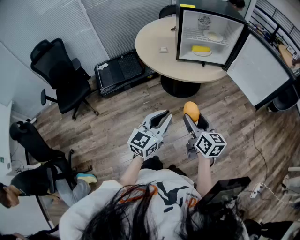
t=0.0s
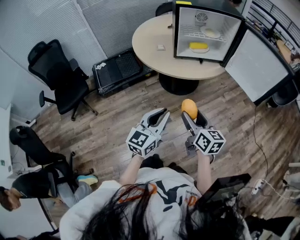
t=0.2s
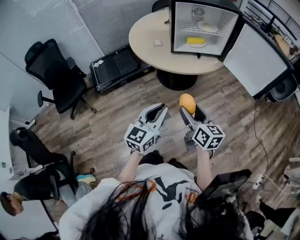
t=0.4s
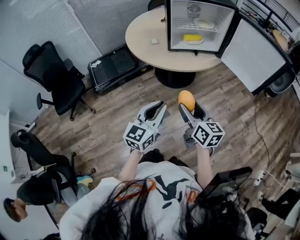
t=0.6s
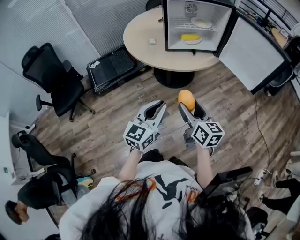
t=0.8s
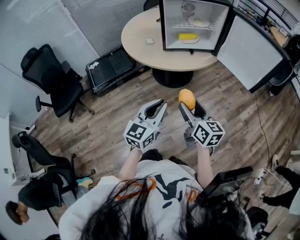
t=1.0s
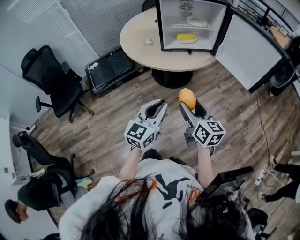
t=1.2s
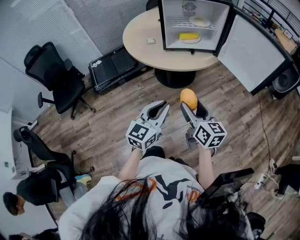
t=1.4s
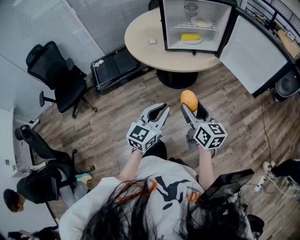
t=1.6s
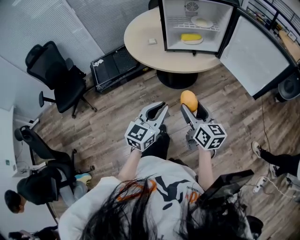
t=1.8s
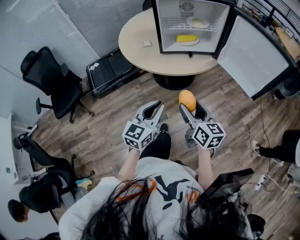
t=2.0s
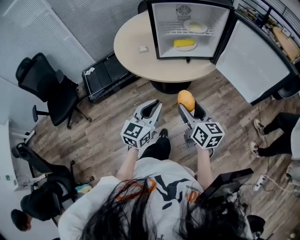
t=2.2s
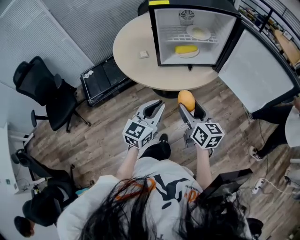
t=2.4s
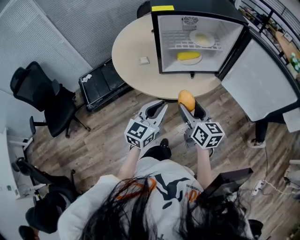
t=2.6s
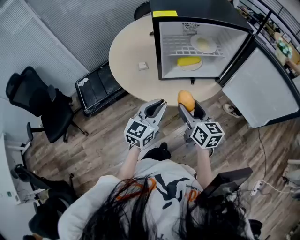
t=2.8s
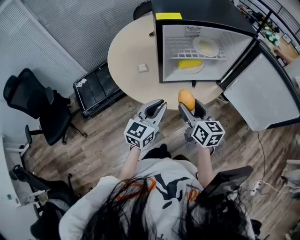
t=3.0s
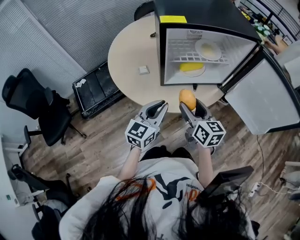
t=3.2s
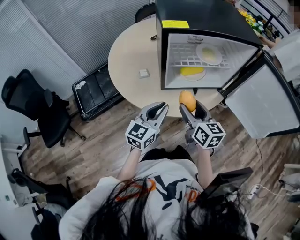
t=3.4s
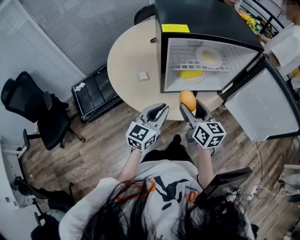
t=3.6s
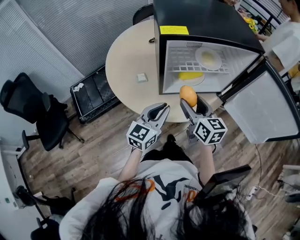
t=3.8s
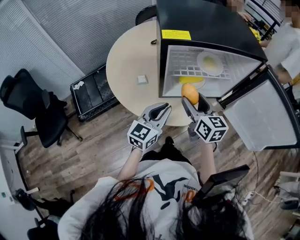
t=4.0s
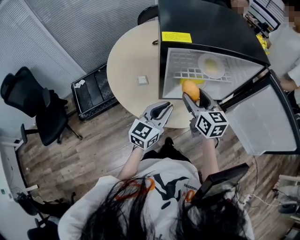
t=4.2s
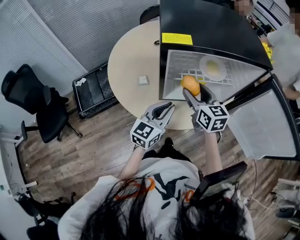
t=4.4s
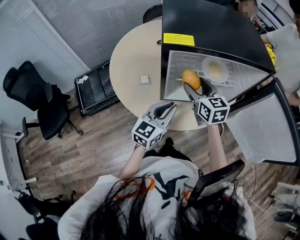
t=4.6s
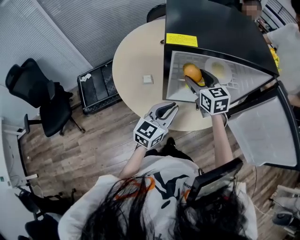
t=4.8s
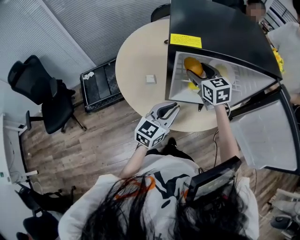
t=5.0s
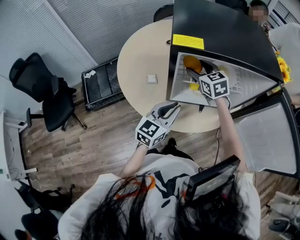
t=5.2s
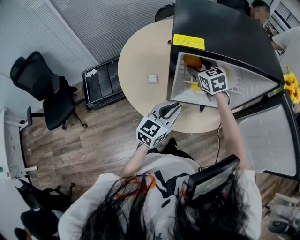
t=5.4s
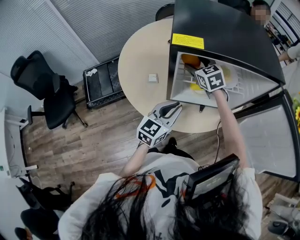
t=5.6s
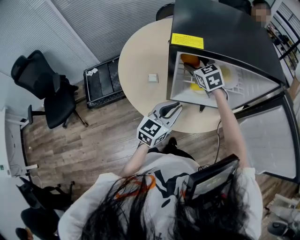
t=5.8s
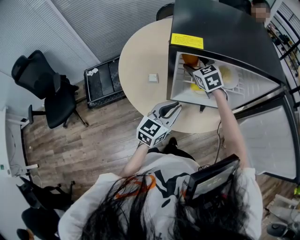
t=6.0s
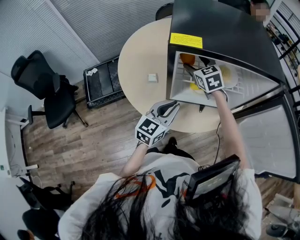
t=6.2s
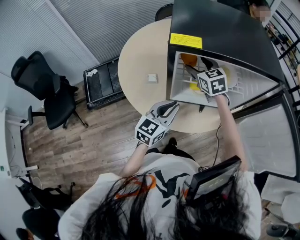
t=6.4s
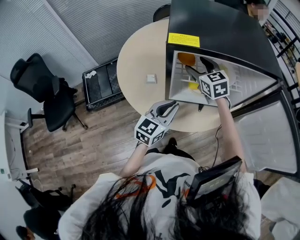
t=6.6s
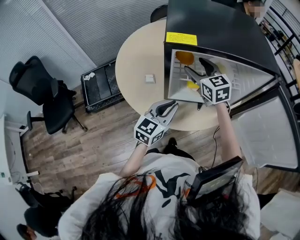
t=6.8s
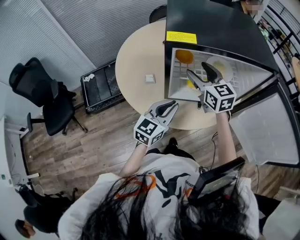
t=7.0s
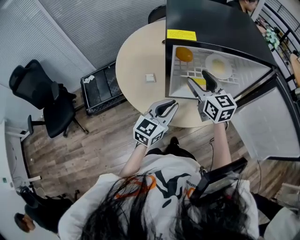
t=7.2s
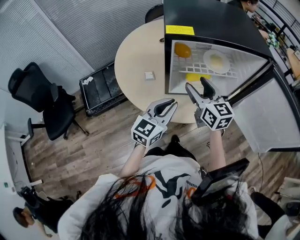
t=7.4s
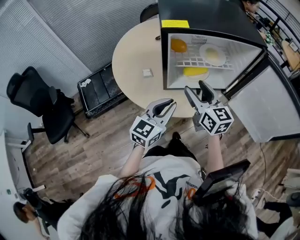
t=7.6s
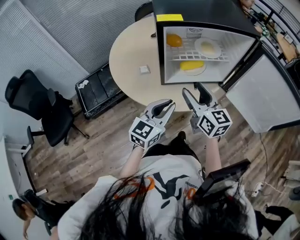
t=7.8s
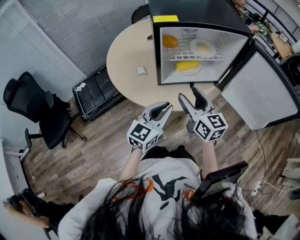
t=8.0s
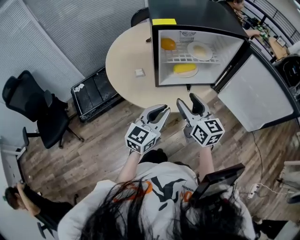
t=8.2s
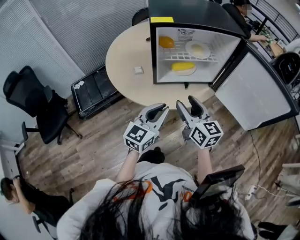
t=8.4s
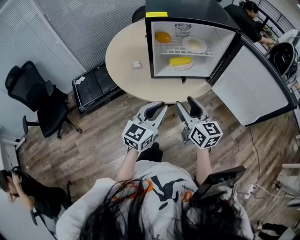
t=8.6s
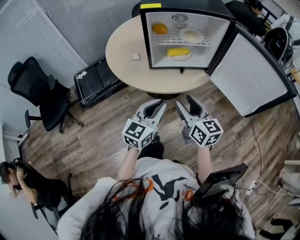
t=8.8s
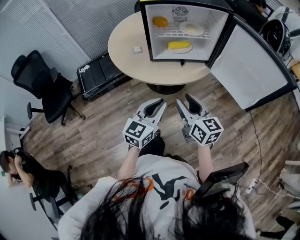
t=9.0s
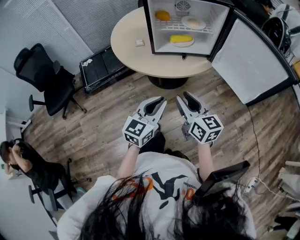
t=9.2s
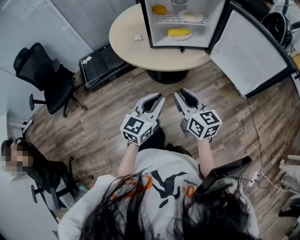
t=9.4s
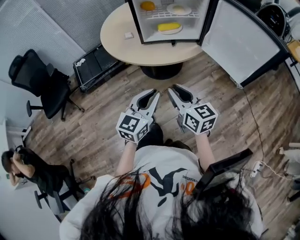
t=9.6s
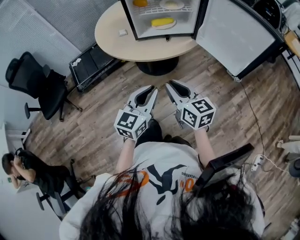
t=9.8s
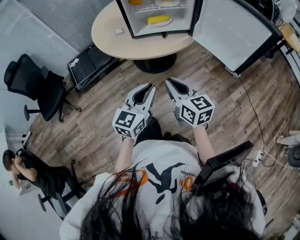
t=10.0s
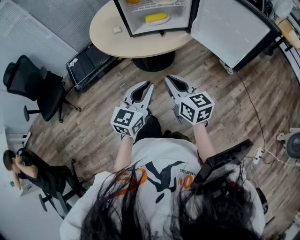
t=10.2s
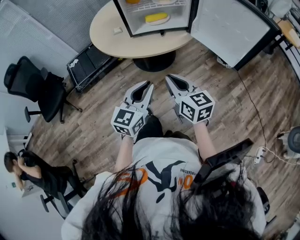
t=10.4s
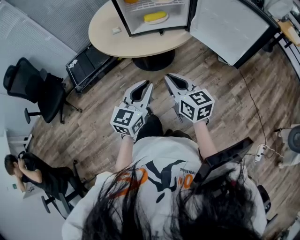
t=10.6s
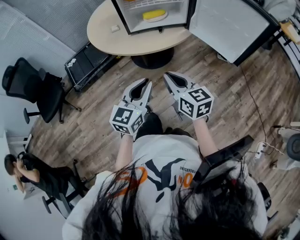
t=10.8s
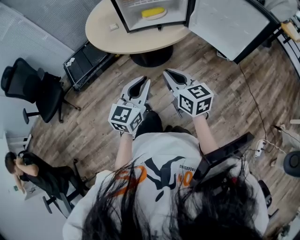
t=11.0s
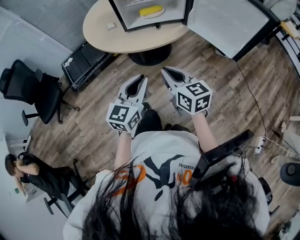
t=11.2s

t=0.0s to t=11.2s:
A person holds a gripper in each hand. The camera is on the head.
t=0.0s to t=1.6s: Both grippers travel together to the right, some 5 cm.
t=1.6s to t=3.2s: The two grippers go roughly 30 cm forward.
t=3.2s to t=4.8s: The left gripper travels forward by some 10 cm. The right gripper moves forward, approximately 20 cm, and changes its angle by approximately 30 degrees.
t=4.8s to t=6.4s: The right gripper shifts about 5 cm forward.
t=6.4s to t=8.0s: The right gripper heads backward, covering about 30 cm, and changes its angle by some 30 degrees; the left gripper goes about 15 cm backward.
t=8.0s to t=9.6s: Both grippers travel together backward, roughly 25 cm. The right gripper closes up.
t=9.6s to t=11.2s: The grippers move only a little.

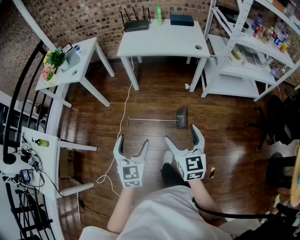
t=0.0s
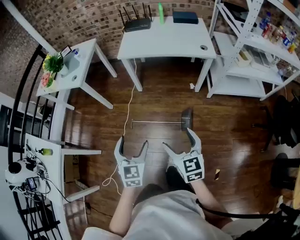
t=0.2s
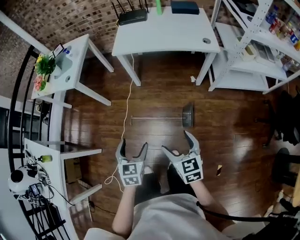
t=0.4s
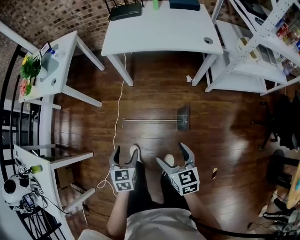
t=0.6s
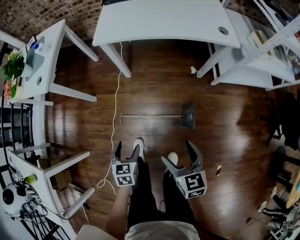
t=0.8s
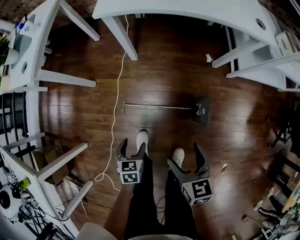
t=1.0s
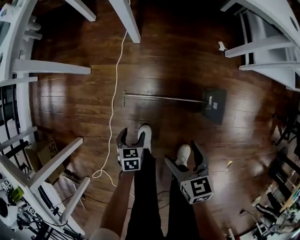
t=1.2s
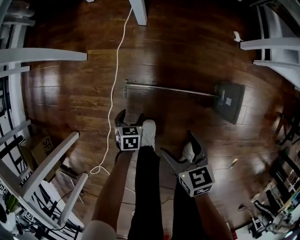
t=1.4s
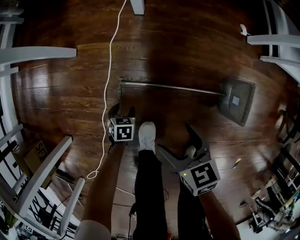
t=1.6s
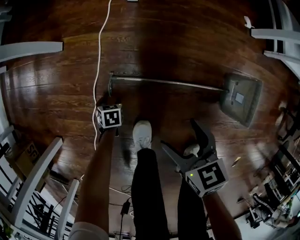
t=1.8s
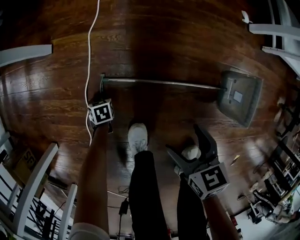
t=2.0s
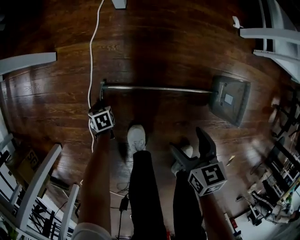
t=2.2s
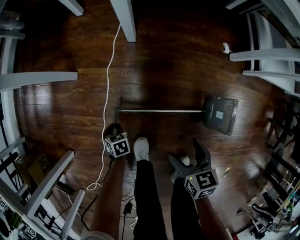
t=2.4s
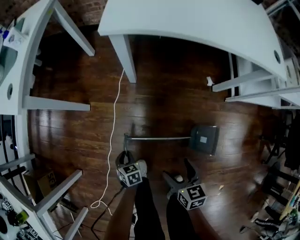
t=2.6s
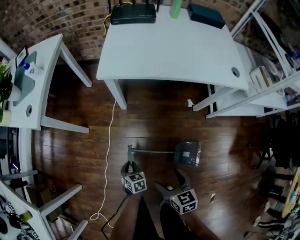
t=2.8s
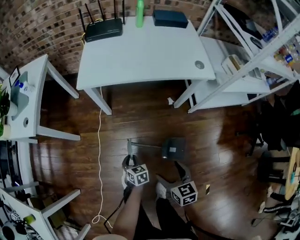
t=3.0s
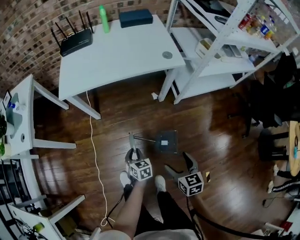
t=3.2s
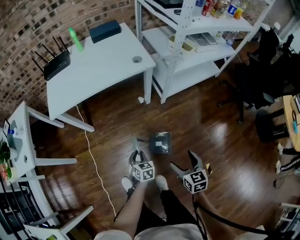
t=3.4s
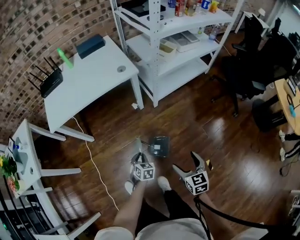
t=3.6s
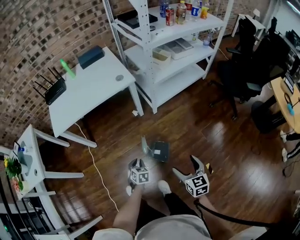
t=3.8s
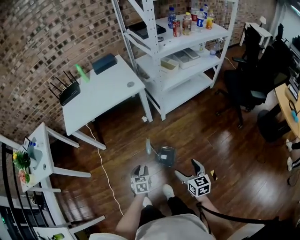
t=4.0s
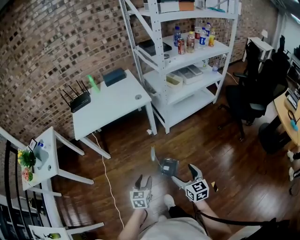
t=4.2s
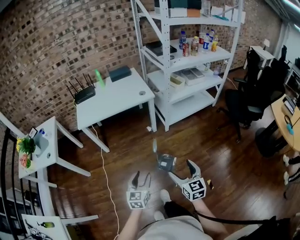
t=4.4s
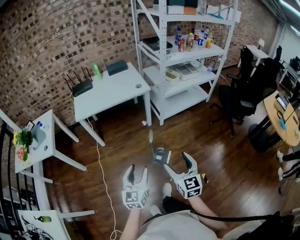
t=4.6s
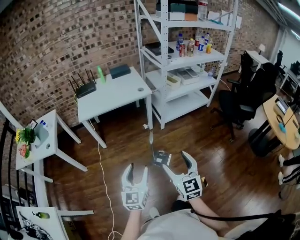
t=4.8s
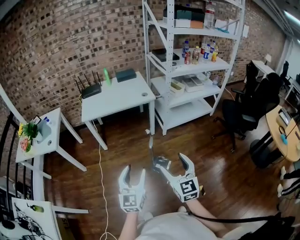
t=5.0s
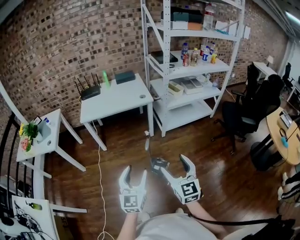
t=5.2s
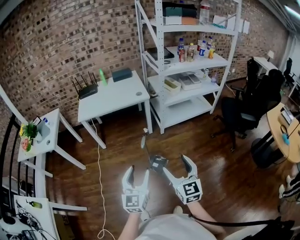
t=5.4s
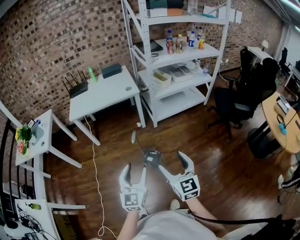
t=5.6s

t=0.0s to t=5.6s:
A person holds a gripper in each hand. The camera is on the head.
t=0.0s to t=1.4s: The right gripper heads downward and forward, covering about 60 cm, and swivels about 40 degrees; the left gripper goes roughly 70 cm downward, and points its fingers approximately 50 degrees further downward.
t=1.4s to t=2.8s: Both grippers move upward, about 25 cm. The left gripper closes its fingers.
t=2.8s to t=4.2s: The right gripper ends up about 50 cm from where it was, and changes its angle by approximately 40 degrees; the left gripper changes place by some 50 cm, and turns by approximately 50 degrees.
t=4.2s to t=5.6s: The right gripper travels upward and backward by roughly 20 cm, and swivels some 20 degrees, while the left gripper shifts about 30 cm upward, backward and to the right, and swivels about 30 degrees.

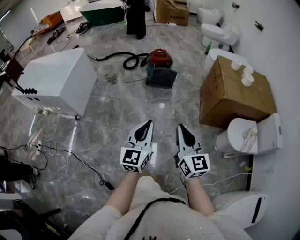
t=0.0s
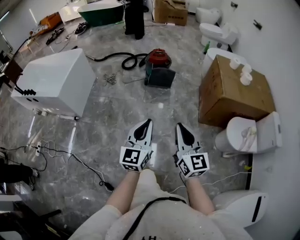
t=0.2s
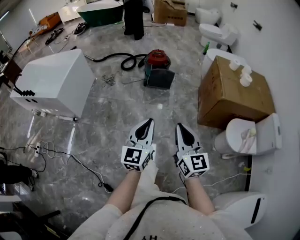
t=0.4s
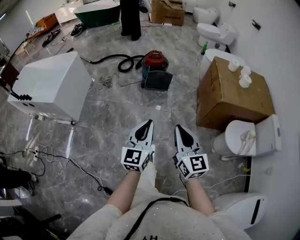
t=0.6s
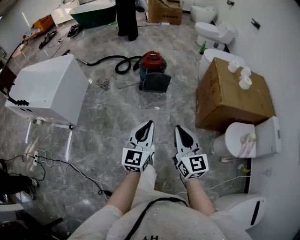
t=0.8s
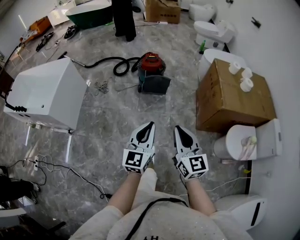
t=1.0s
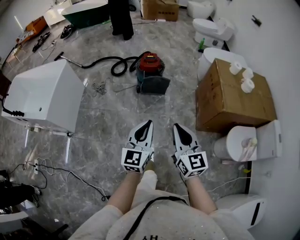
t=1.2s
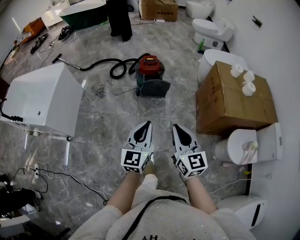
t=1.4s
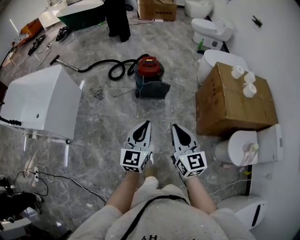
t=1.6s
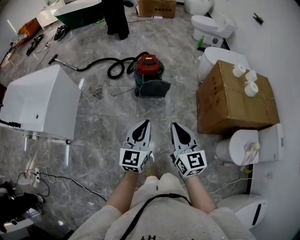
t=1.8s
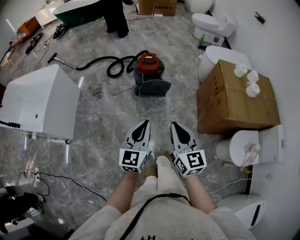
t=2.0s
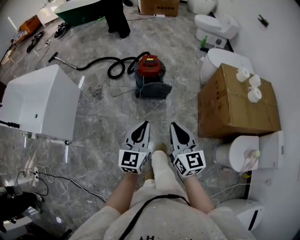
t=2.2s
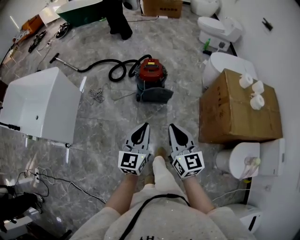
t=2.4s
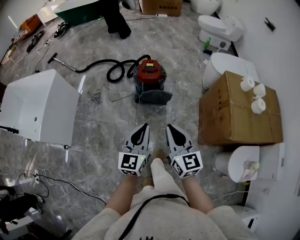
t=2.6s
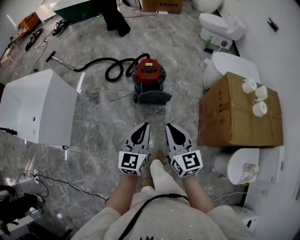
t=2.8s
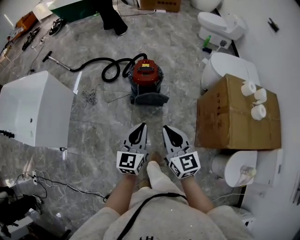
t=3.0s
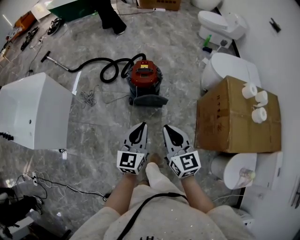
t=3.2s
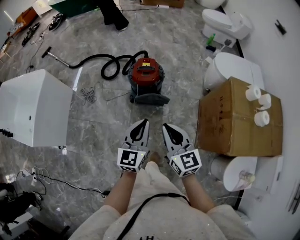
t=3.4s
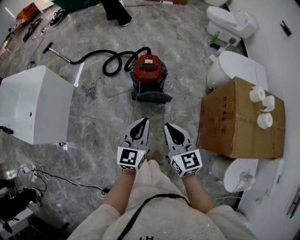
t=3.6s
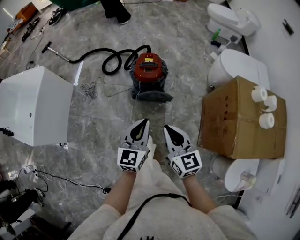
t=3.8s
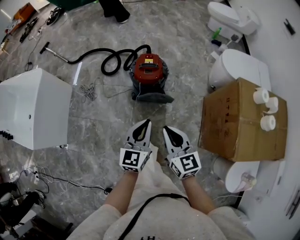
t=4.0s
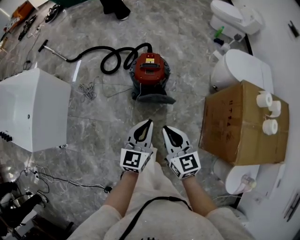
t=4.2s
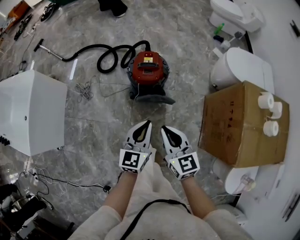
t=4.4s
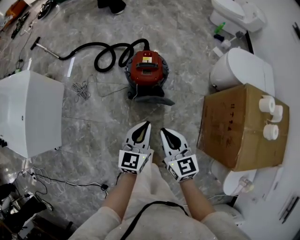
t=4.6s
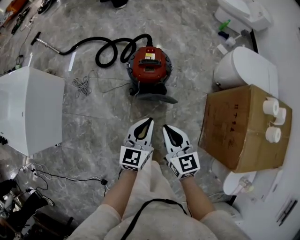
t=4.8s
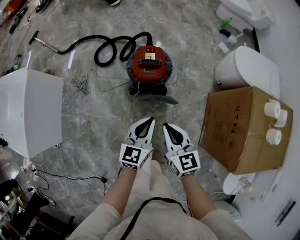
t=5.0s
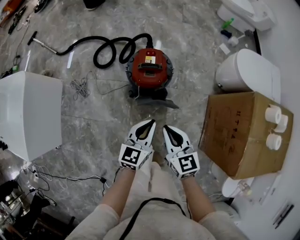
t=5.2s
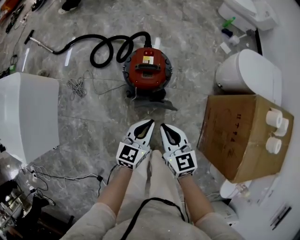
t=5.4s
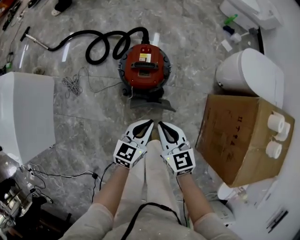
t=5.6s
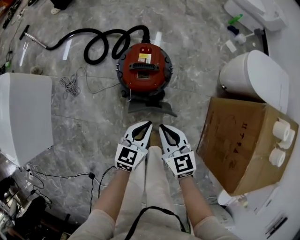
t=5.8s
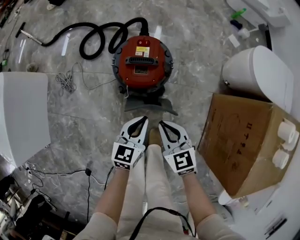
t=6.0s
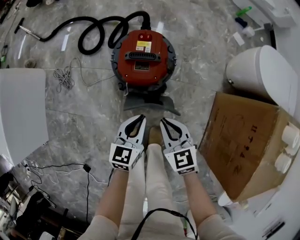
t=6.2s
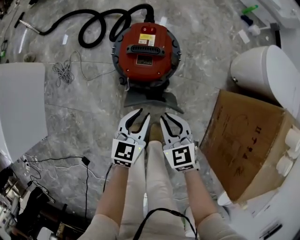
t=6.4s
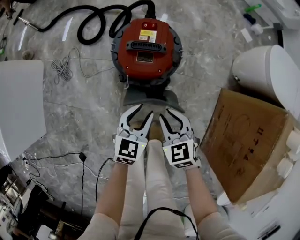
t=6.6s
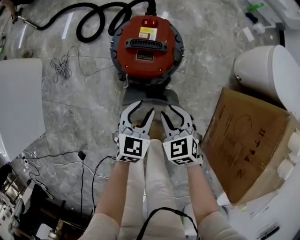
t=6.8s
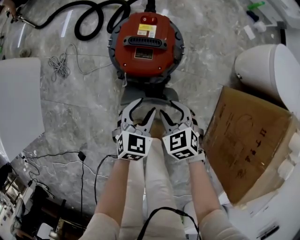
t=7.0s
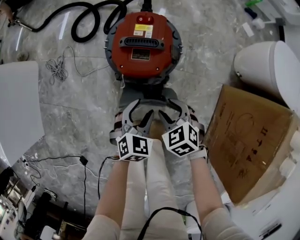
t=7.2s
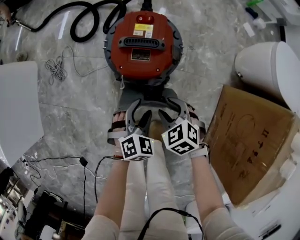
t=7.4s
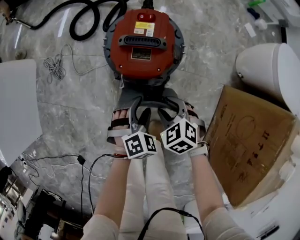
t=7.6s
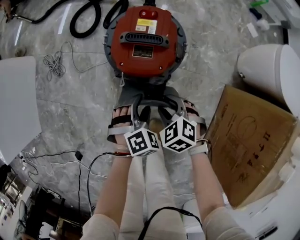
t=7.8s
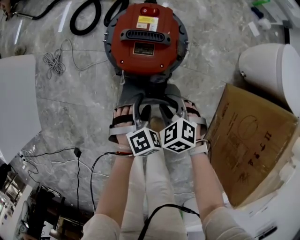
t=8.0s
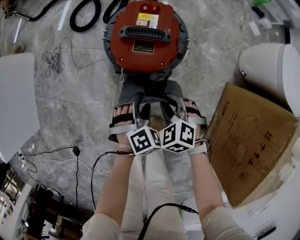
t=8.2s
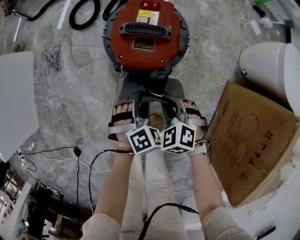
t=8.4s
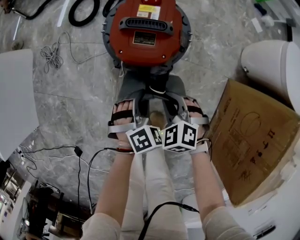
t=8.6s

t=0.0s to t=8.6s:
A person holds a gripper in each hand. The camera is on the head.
t=0.0s to t=1.4s: Both grippers travel together forward, about 20 cm.
t=1.4s to t=2.8s: The grippers both shift forward by roughly 20 cm.
t=2.8s to t=4.4s: The grippers both shift forward and downward by roughly 20 cm.
t=4.4s to t=5.8s: Both grippers move downward and forward, roughly 20 cm.
t=5.8s to t=7.2s: The grippers both shift downward by roughly 20 cm. The left gripper rotates approximately 30 degrees, and opens. The right gripper rotates roughly 40 degrees, and opens up.
t=7.2s to t=8.6s: The left gripper turns by about 30 degrees, and closes its fingers. Meanwhile the right gripper closes its fingers.
